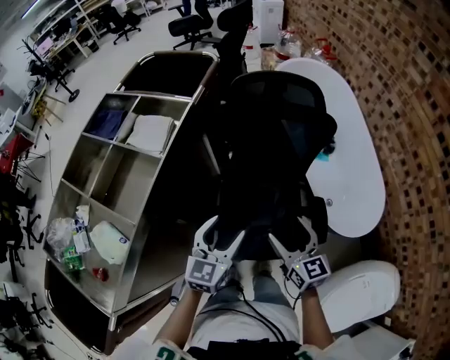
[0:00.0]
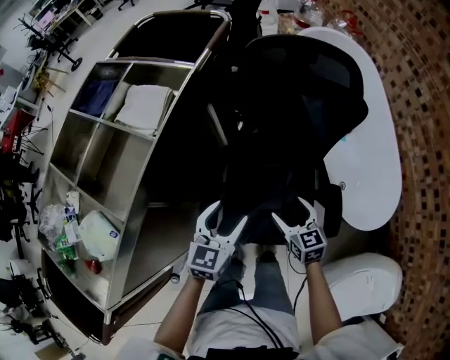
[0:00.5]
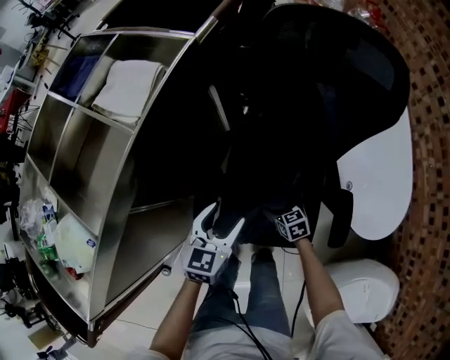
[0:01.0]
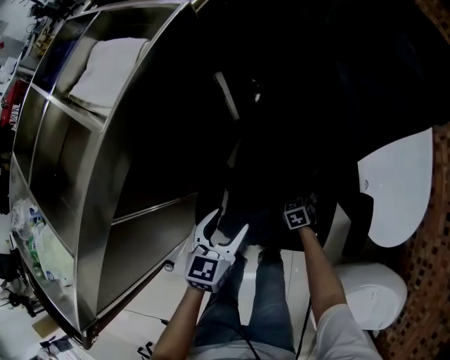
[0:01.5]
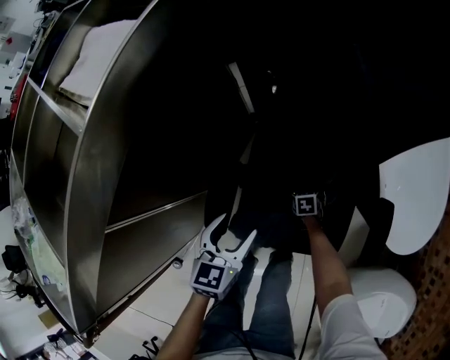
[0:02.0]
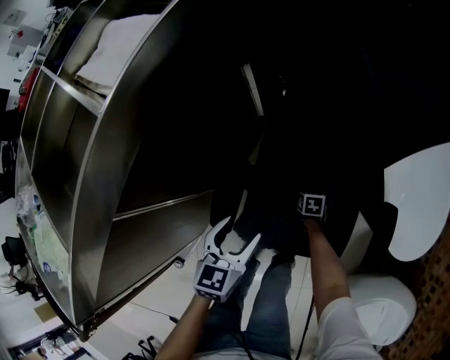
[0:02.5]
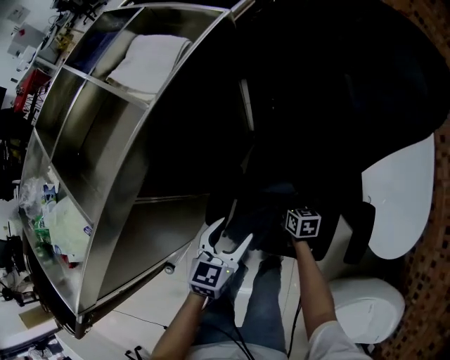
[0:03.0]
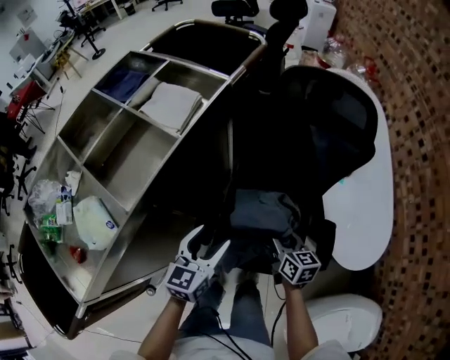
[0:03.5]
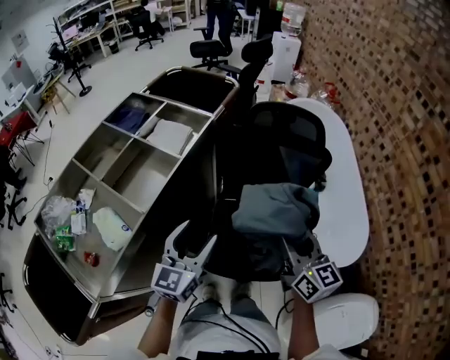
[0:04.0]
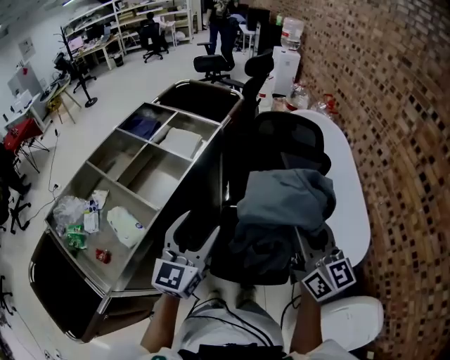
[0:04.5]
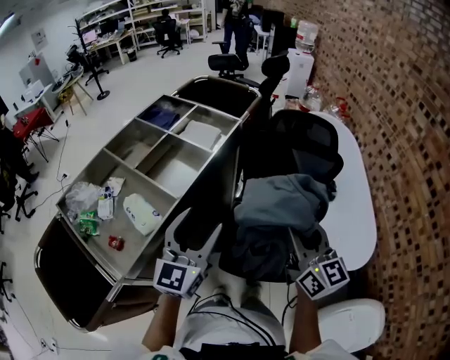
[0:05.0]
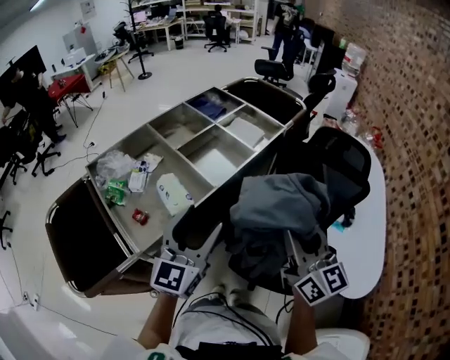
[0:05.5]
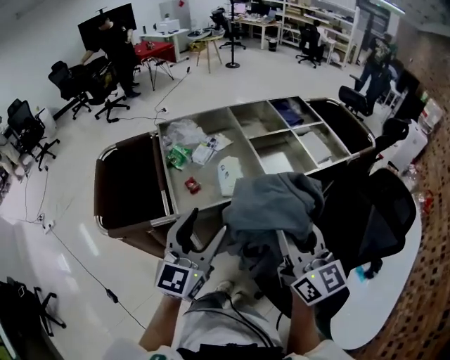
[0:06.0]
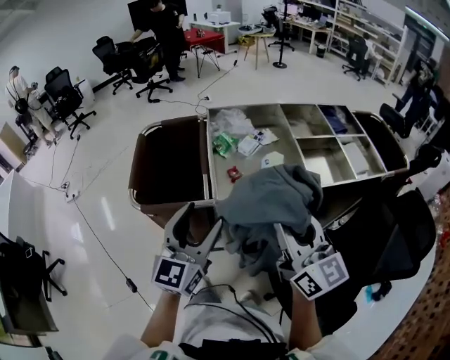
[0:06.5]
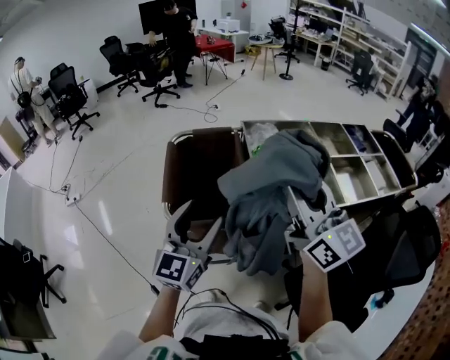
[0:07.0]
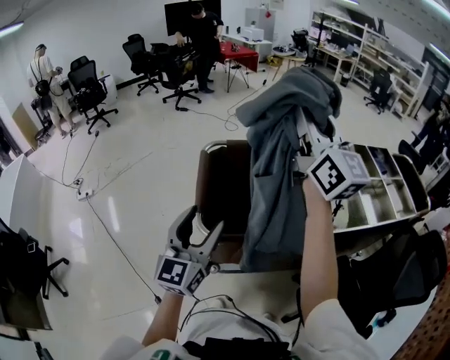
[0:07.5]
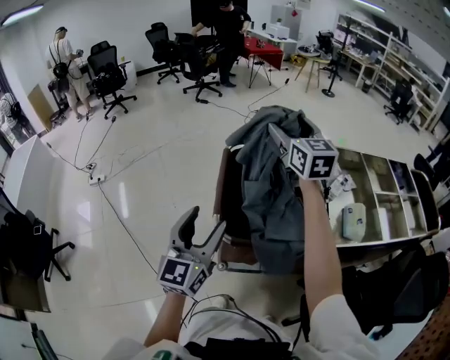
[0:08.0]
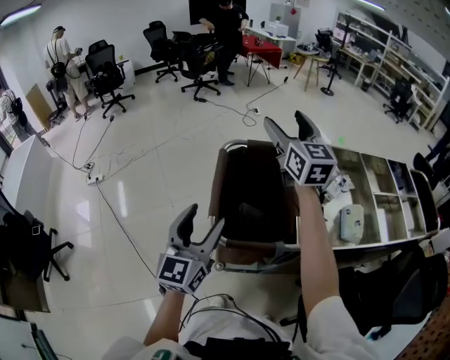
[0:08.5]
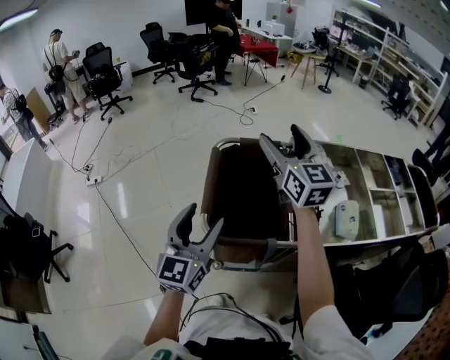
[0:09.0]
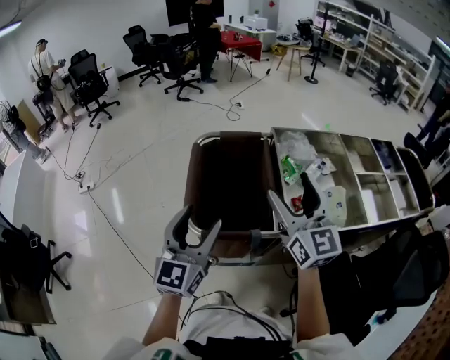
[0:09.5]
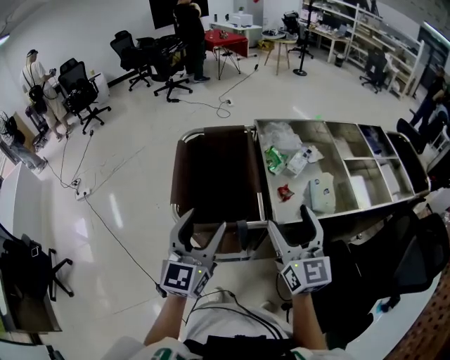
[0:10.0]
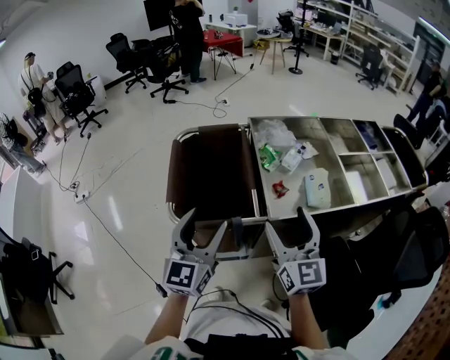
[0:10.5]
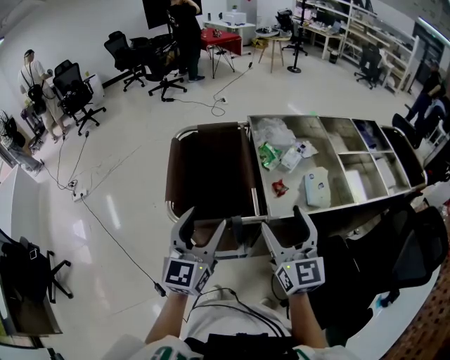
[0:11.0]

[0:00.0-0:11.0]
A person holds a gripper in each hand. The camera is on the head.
0:00.0 to 0:02.0: The right gripper shifts some 60 cm downward, points its fingers about 50 degrees further downward, and opens up. The left gripper moves downward, roughly 25 cm, and swivels about 30 degrees.
0:02.0 to 0:03.5: The left gripper is displaced upward by about 20 cm. Meanwhile the right gripper travels upward by some 40 cm, points its fingers approximately 40 degrees further upward, and closes its fingers.
0:03.5 to 0:05.5: The left gripper shifts some 35 cm upward, to the left and backward, and swivels about 30 degrees, while the right gripper moves upward, some 40 cm, and angles its fingers upward, by roughly 40 degrees.
0:05.5 to 0:07.5: The pair of grippers is taken roughly 50 cm. The left gripper rotates about 50 degrees. Meanwhile the right gripper rotates approximately 50 degrees.
0:07.5 to 0:09.0: The right gripper moves downward, forward and to the left, about 20 cm, changes its angle by about 20 degrees, and opens up.
0:09.0 to 0:11.0: The left gripper is displaced to the right by about 10 cm; the right gripper goes about 30 cm backward, to the right and downward.

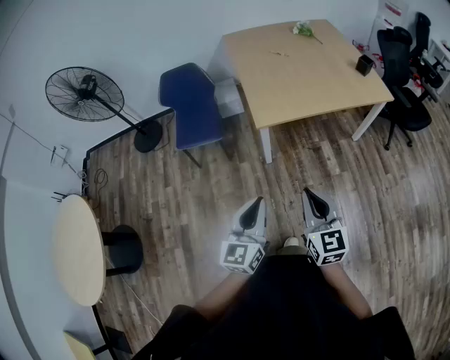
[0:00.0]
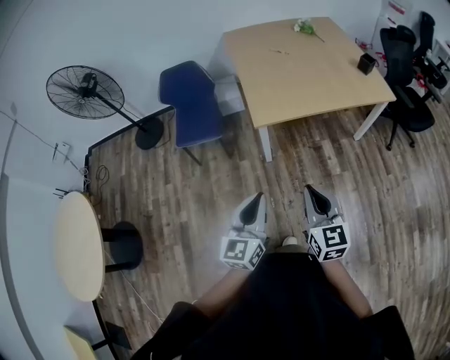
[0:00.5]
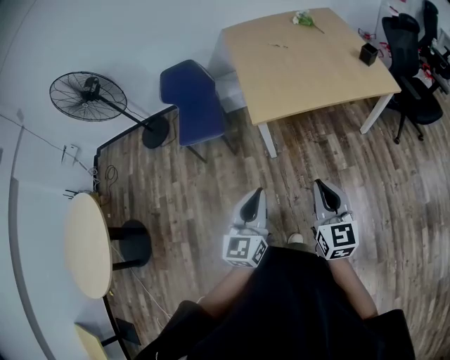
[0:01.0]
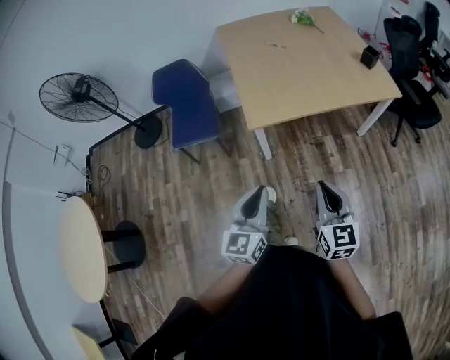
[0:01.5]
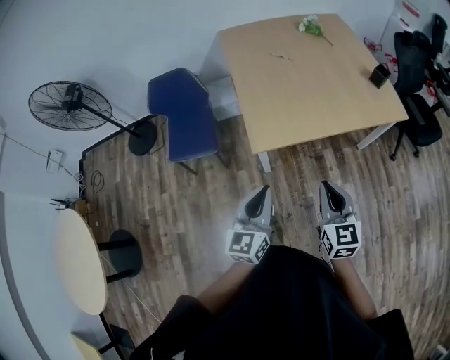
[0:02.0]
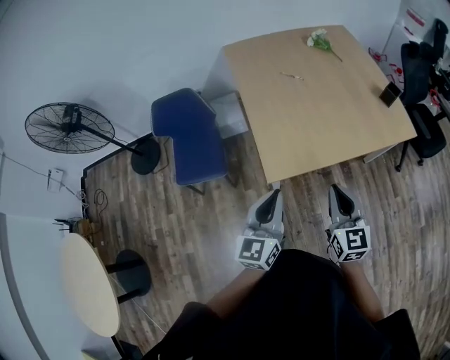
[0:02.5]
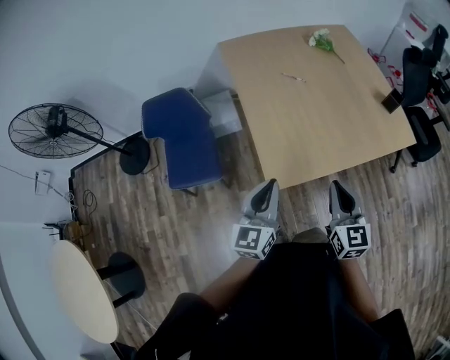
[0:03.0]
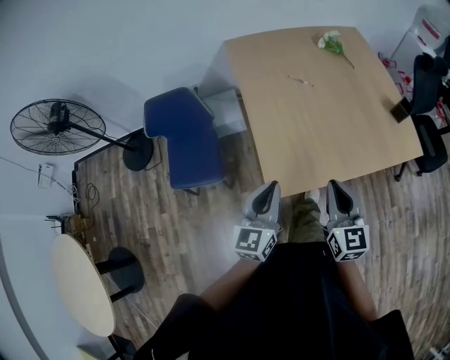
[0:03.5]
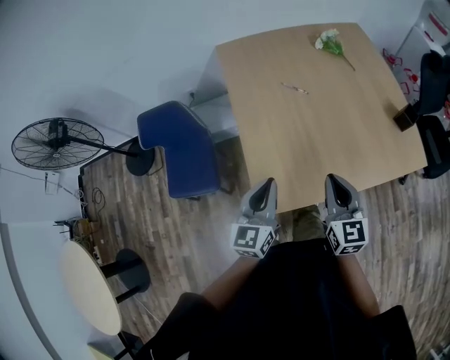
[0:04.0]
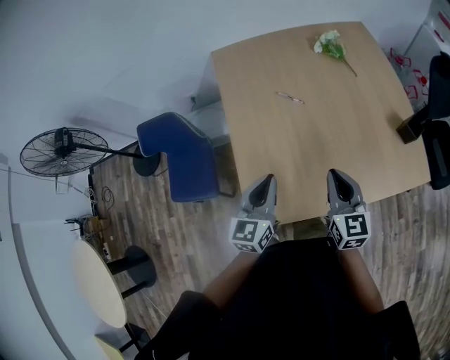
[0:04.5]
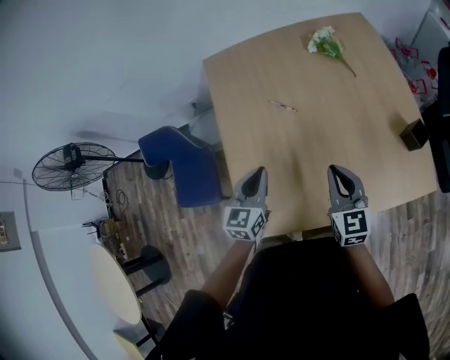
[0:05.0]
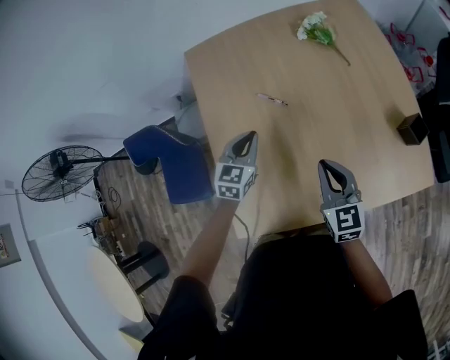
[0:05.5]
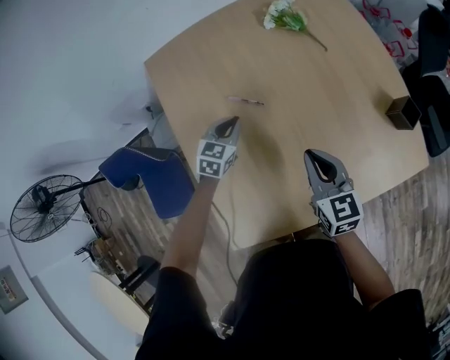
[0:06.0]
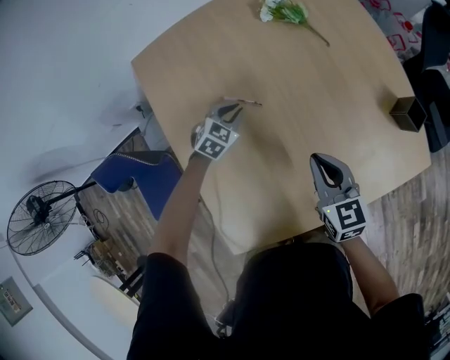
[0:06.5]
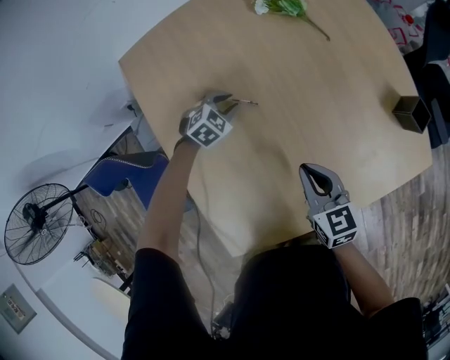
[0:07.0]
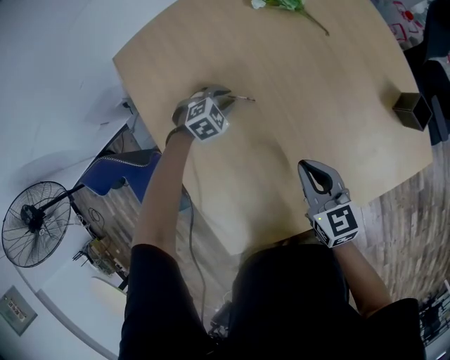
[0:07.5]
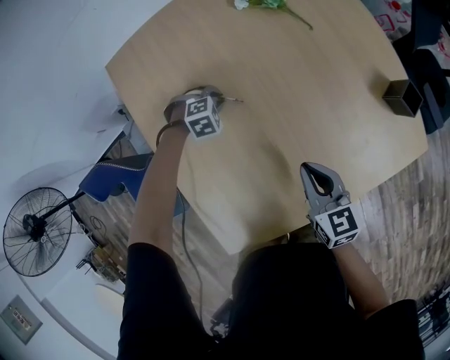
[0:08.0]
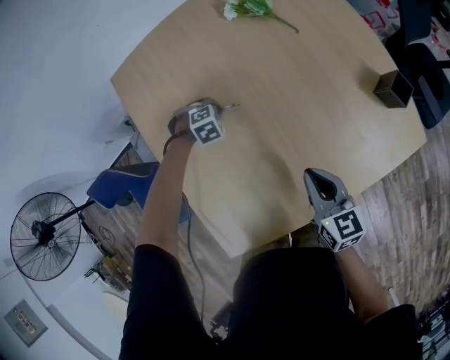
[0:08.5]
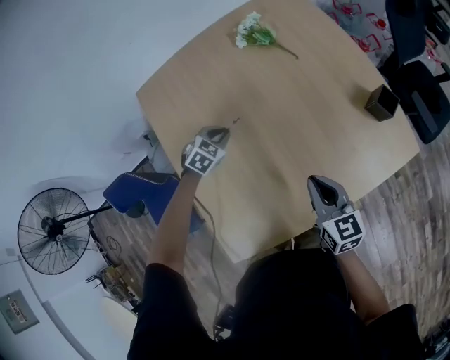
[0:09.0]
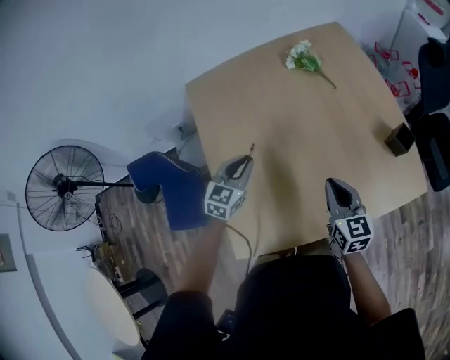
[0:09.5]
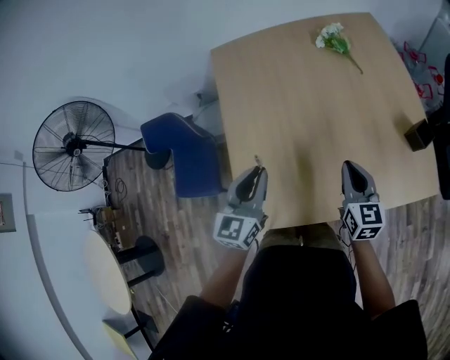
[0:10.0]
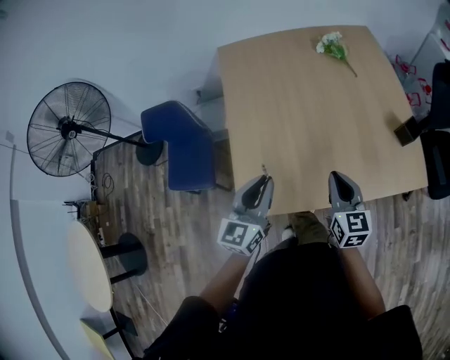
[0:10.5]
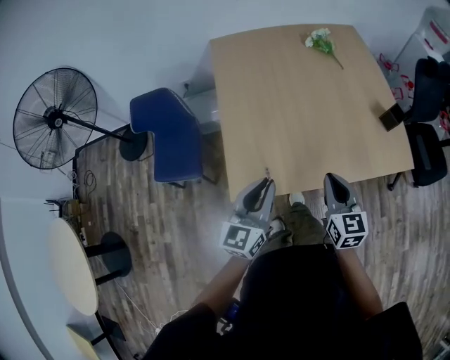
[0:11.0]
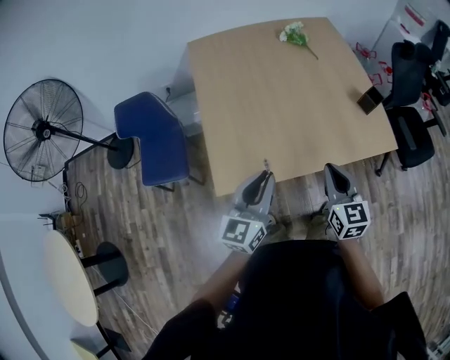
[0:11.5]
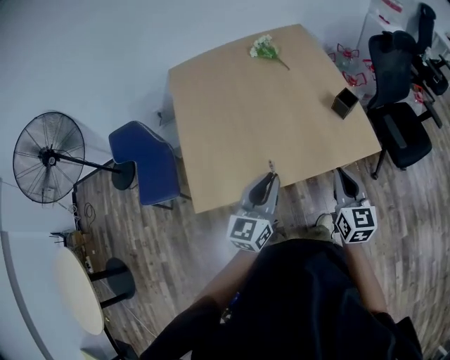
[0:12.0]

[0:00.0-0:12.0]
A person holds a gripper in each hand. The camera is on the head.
0:00.0 to 0:02.0: The two grippers go some 25 cm forward.
0:02.0 to 0:04.0: Both grippers are carried forward, roughly 40 cm.
0:04.0 to 0:06.0: The left gripper heads forward and downward, covering some 50 cm, and tilts its fingers roughly 30 degrees downward. The right gripper moves forward and to the right, about 35 cm.
0:06.0 to 0:08.0: The right gripper is displaced downward by about 10 cm; the left gripper moves downward, about 15 cm, and tilts its fingers approximately 40 degrees downward.
0:08.0 to 0:10.0: The left gripper moves upward, approximately 35 cm, and tilts its fingers roughly 60 degrees upward; the right gripper moves upward, approximately 10 cm.
0:10.0 to 0:12.0: The left gripper goes roughly 35 cm to the right and backward; the right gripper moves backward and to the right, roughly 35 cm.

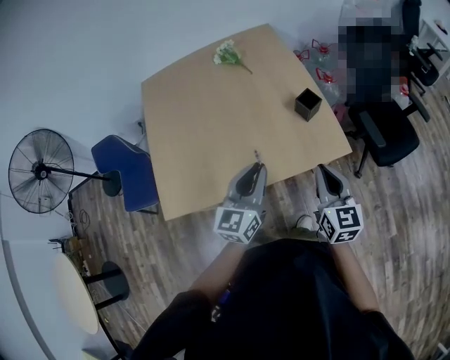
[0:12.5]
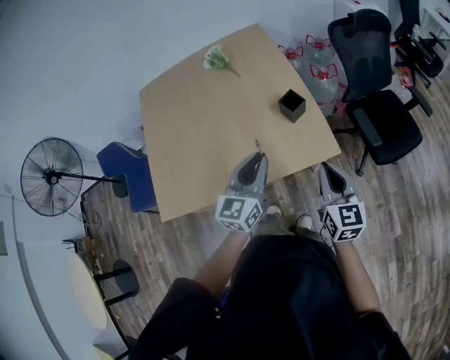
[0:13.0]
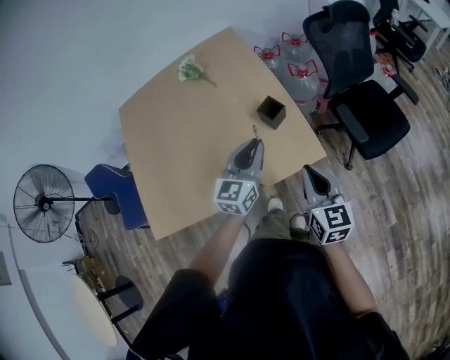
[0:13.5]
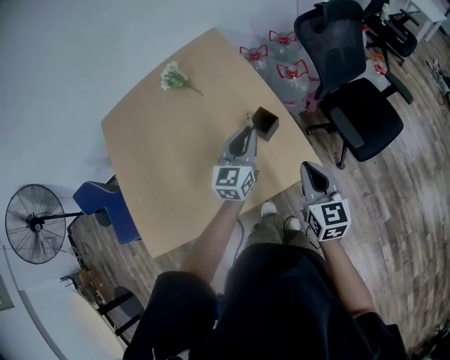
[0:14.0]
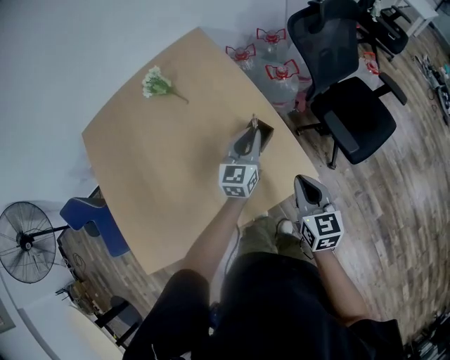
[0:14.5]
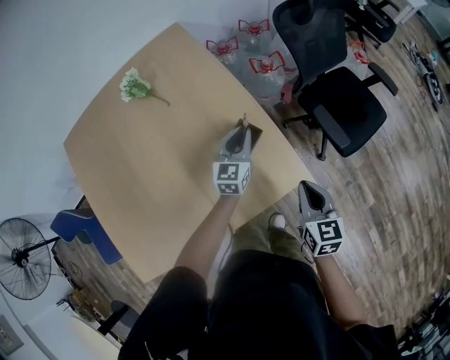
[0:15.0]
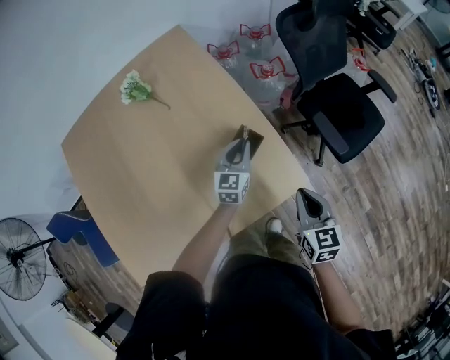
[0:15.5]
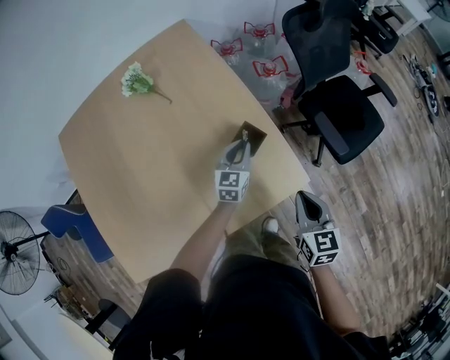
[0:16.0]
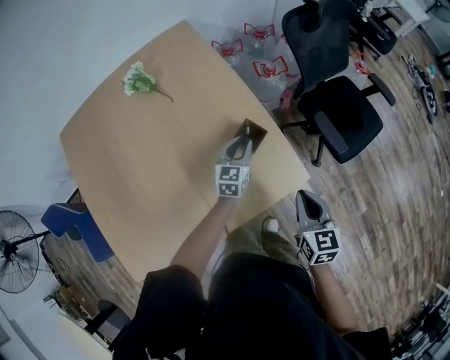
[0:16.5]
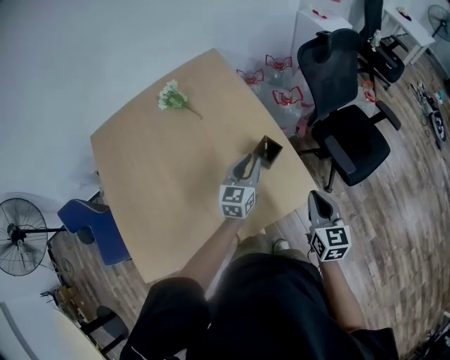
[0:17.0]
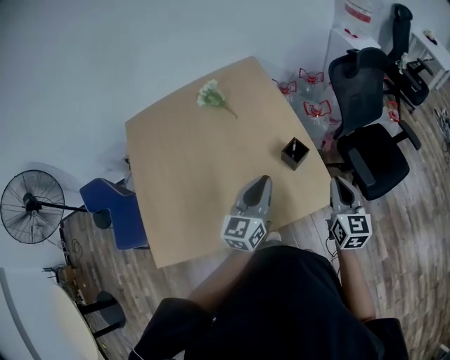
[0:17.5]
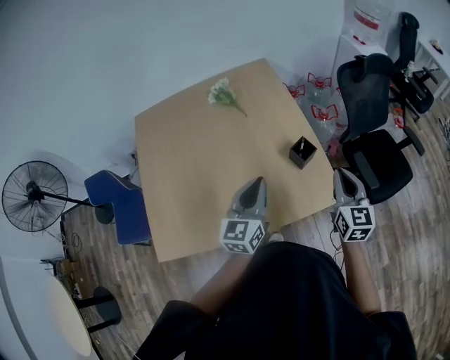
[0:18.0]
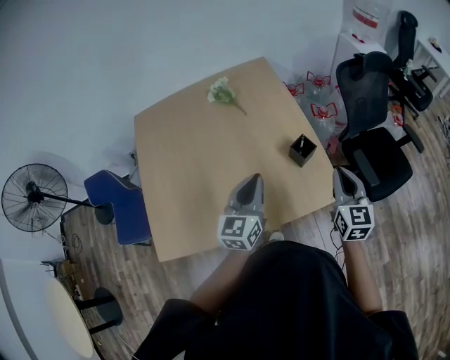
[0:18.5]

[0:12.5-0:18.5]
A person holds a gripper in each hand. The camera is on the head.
0:12.5 to 0:14.5: The right gripper moves forward, to the right and downward, roughly 25 cm. The left gripper goes roughly 40 cm forward, to the right and downward.
0:14.5 to 0:16.5: The left gripper moves downward, about 10 cm.
0:16.5 to 0:18.5: The right gripper is displaced upward by about 15 cm, and changes its angle by about 20 degrees. Meanwhile the left gripper moves upward, backward and to the left, approximately 40 cm, turns by approximately 20 degrees, and closes.
